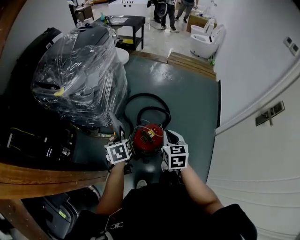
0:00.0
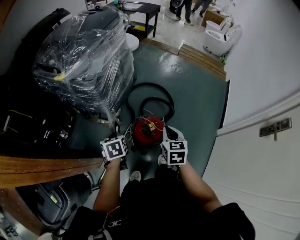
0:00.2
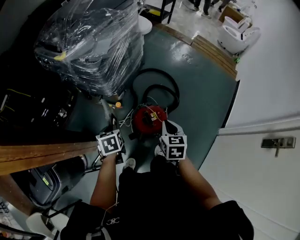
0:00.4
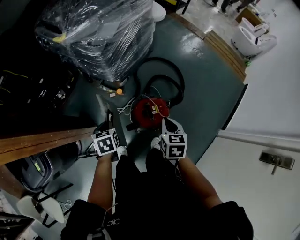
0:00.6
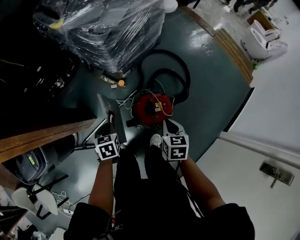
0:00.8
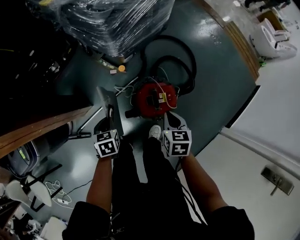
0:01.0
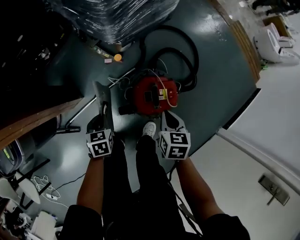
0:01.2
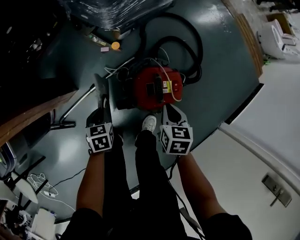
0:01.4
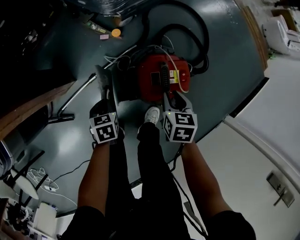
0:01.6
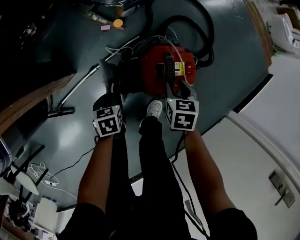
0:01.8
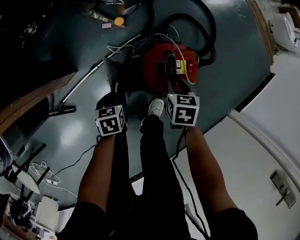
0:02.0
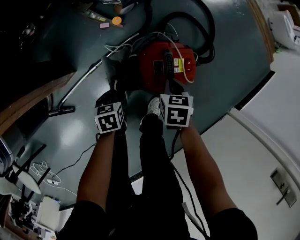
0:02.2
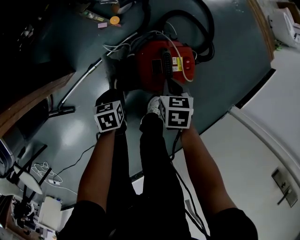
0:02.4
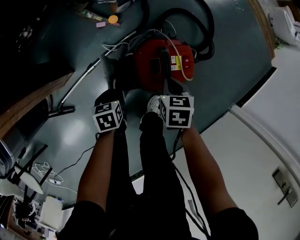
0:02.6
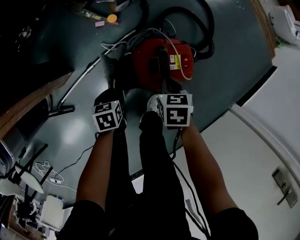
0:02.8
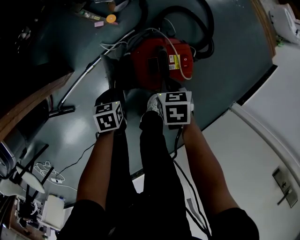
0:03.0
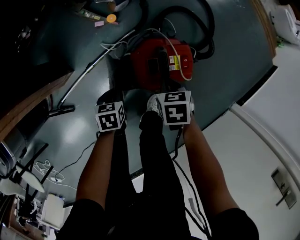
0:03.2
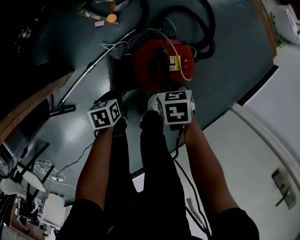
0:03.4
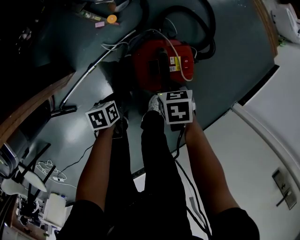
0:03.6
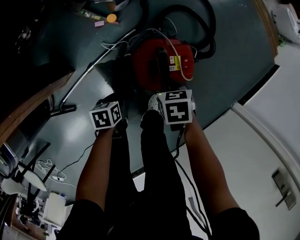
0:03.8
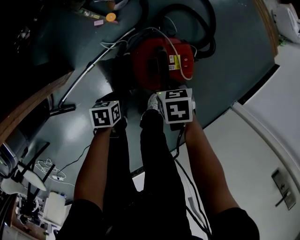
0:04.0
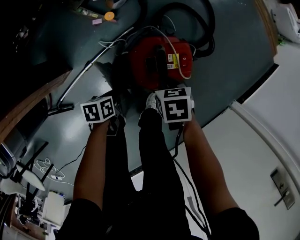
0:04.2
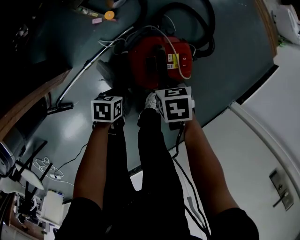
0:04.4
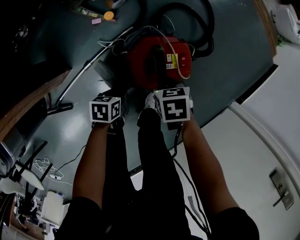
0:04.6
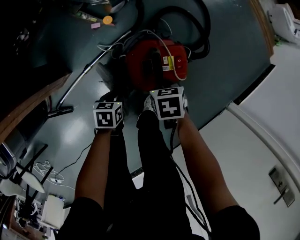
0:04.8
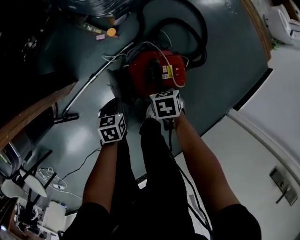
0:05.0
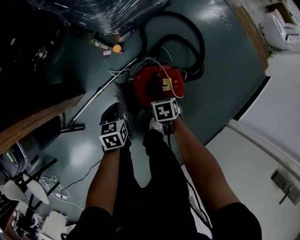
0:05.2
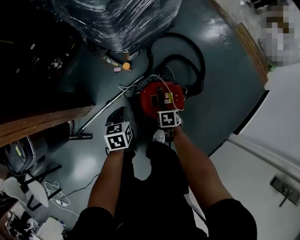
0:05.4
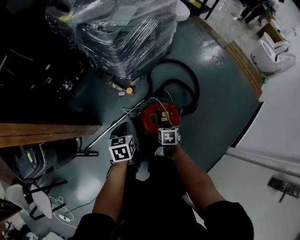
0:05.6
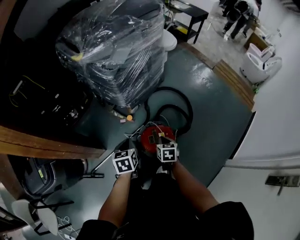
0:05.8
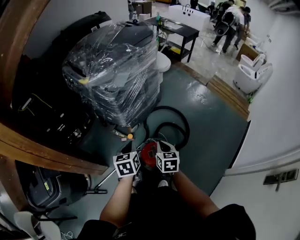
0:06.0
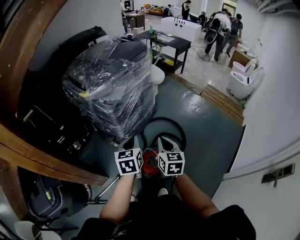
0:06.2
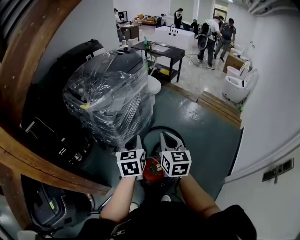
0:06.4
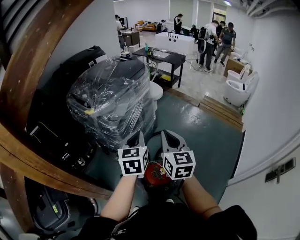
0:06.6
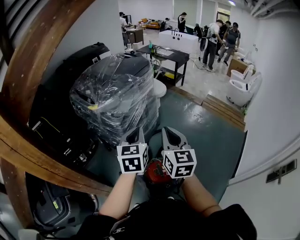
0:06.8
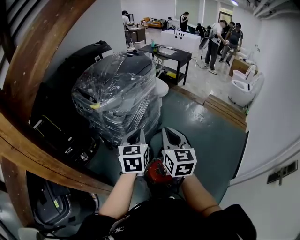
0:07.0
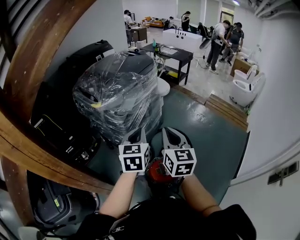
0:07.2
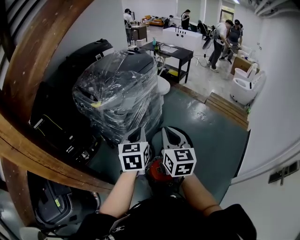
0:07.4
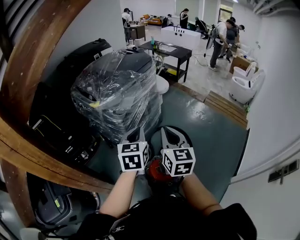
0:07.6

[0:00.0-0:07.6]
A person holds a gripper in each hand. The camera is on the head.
0:00.0 to 0:01.6: The two grippers go about 40 cm downward. The right gripper turns by approximately 40 degrees, and opens up. The left gripper changes its angle by roughly 30 degrees.
0:01.6 to 0:03.0: The right gripper closes its fingers. The left gripper shifts by roughly 5 cm.
0:03.0 to 0:04.6: The left gripper travels to the right by some 5 cm, and rotates approximately 20 degrees.
0:04.6 to 0:06.0: The grippers both shift upward by roughly 50 cm. The right gripper tips its fingers upward by roughly 40 degrees, while the left gripper turns by roughly 40 degrees.
0:06.0 to 0:07.6: The two grippers go approximately 25 cm upward. The right gripper swivels roughly 30 degrees, while the left gripper rotates about 20 degrees.

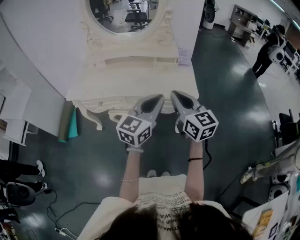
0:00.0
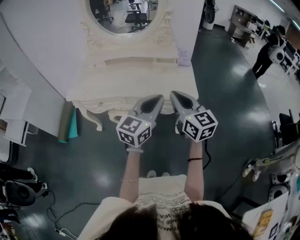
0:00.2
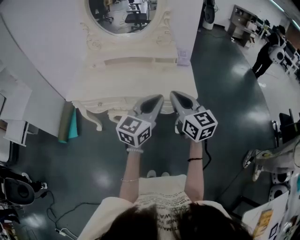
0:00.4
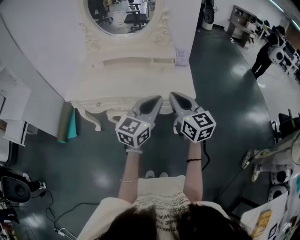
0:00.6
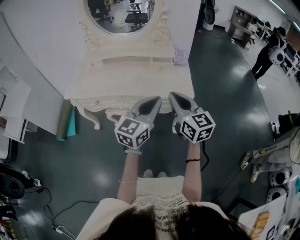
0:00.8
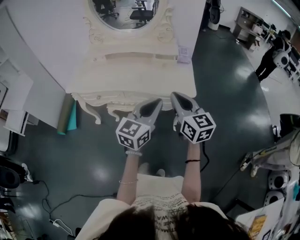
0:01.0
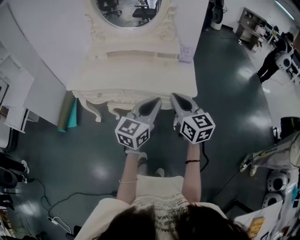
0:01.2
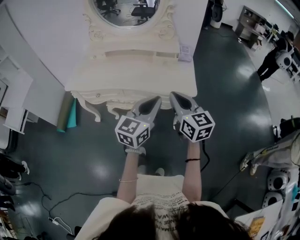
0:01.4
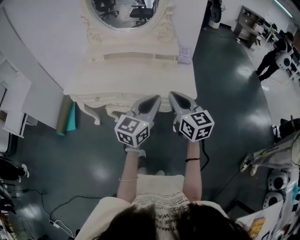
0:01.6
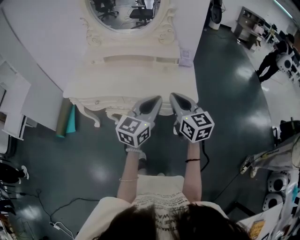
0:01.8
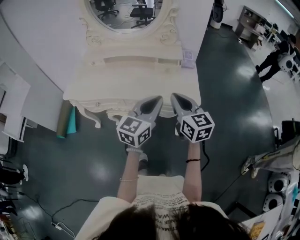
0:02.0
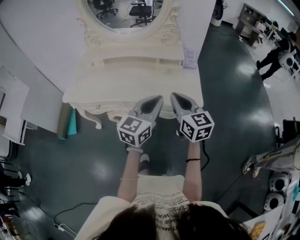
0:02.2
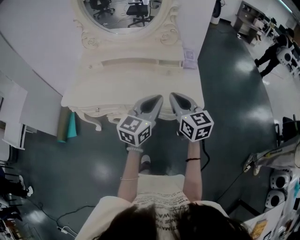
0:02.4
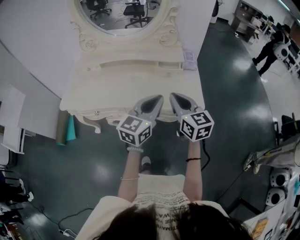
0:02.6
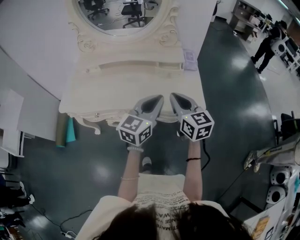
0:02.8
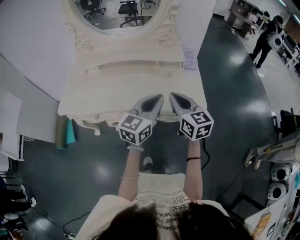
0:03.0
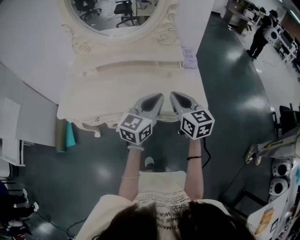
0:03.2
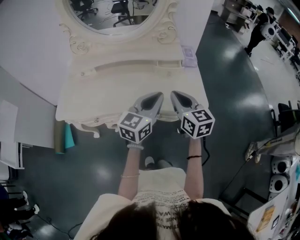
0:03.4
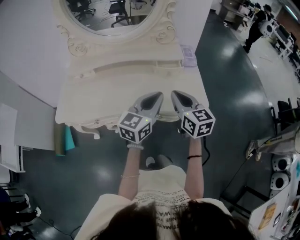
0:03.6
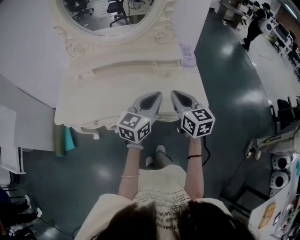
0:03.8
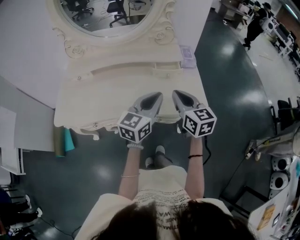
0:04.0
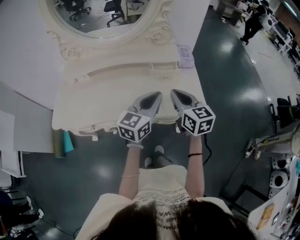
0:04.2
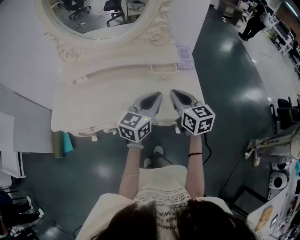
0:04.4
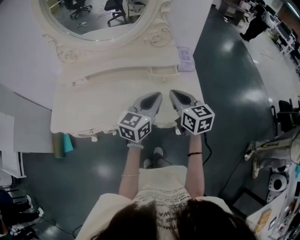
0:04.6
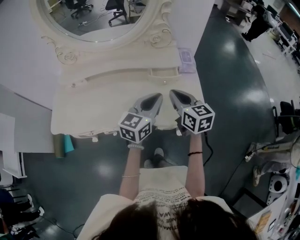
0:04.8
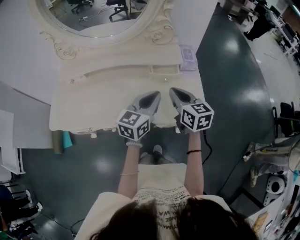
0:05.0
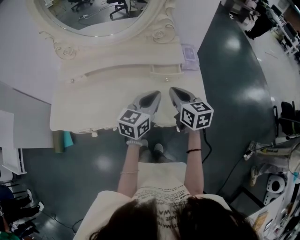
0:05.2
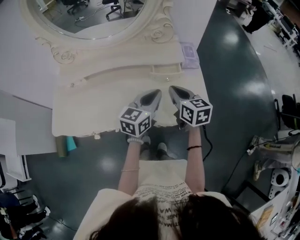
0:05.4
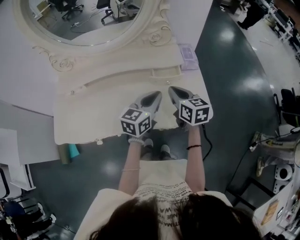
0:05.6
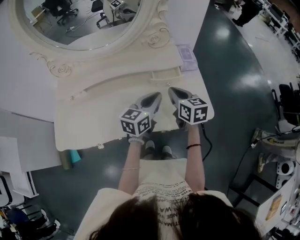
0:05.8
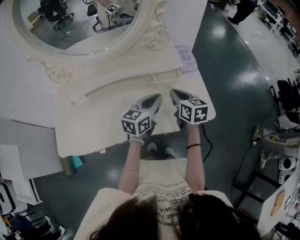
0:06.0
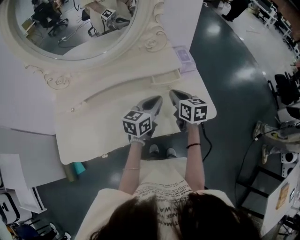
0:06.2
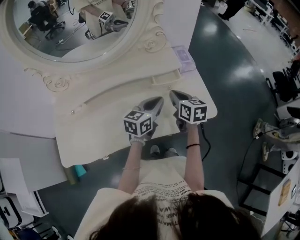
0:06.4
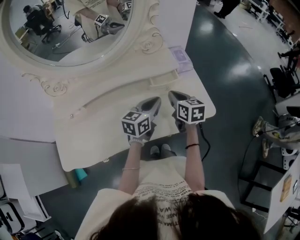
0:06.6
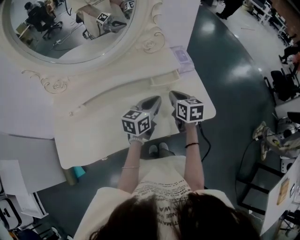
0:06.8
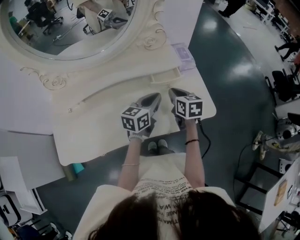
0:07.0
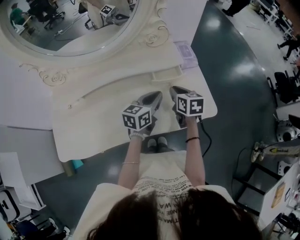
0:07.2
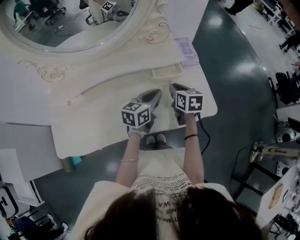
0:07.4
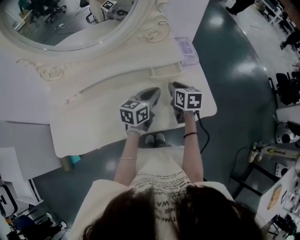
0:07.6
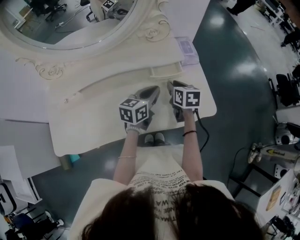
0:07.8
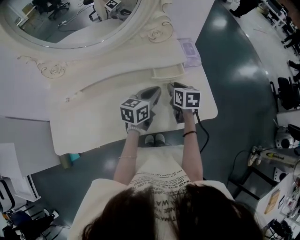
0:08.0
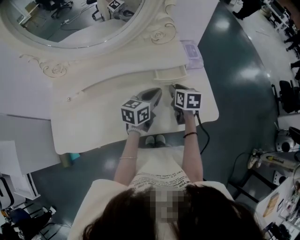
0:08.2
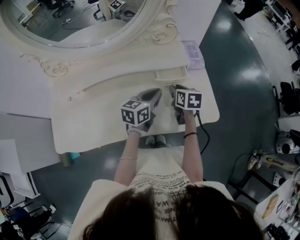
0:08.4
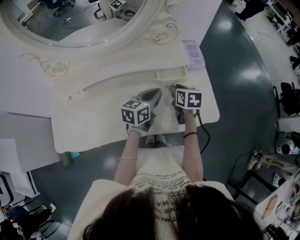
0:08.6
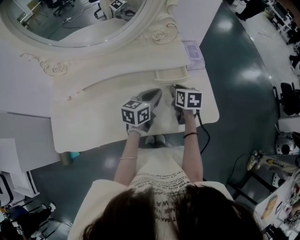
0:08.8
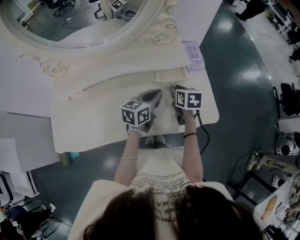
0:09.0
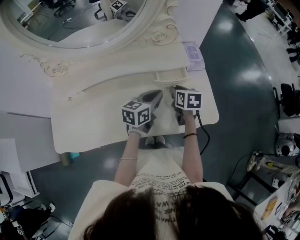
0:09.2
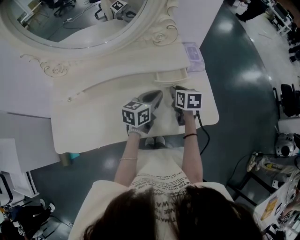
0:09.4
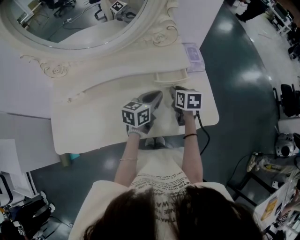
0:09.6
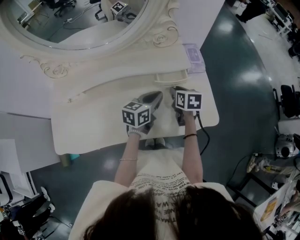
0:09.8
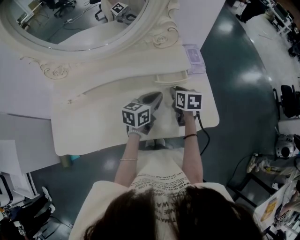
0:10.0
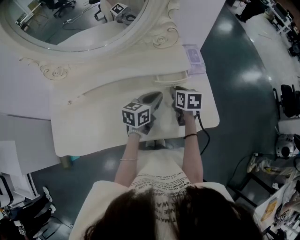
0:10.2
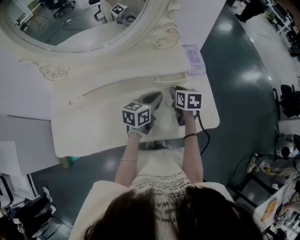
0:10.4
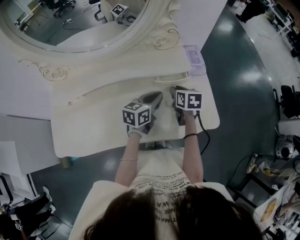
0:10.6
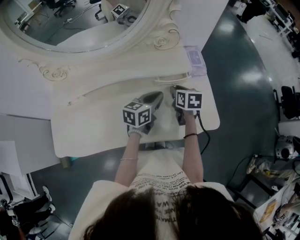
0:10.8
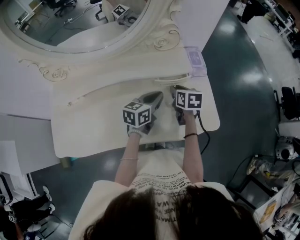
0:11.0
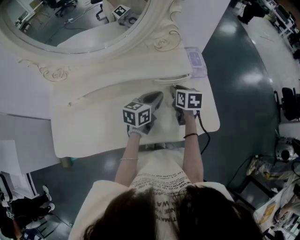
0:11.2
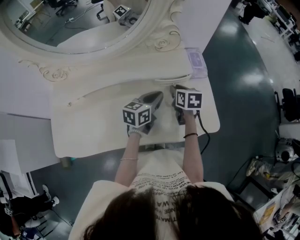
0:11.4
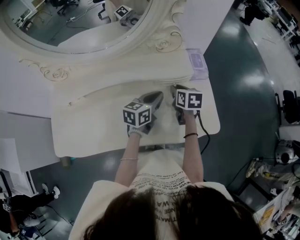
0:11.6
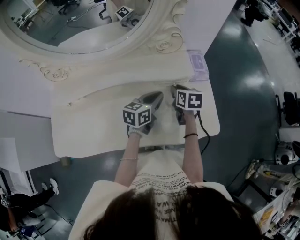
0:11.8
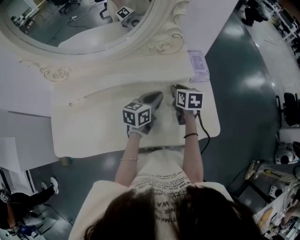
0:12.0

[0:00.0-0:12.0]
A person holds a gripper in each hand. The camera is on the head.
0:00.0 to 0:01.6: There are only small adjustments of the grippers.
0:01.6 to 0:03.0: The right gripper travels forward and to the left by approximately 15 cm; the left gripper shifts roughly 15 cm forward.
0:03.0 to 0:04.4: Both grippers travel together forward, some 10 cm.
0:04.4 to 0:06.0: Both grippers move forward and downward, about 10 cm.
0:06.0 to 0:07.6: The right gripper goes approximately 5 cm downward. Meanwhile the left gripper shifts by approximately 5 cm.
0:07.6 to 0:10.4: The grippers move only a little.
0:10.4 to 0:12.0: The grippers stay close to where they were, moving slightly.

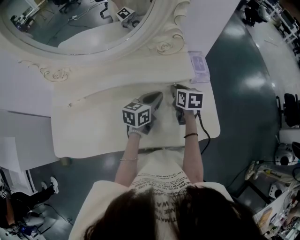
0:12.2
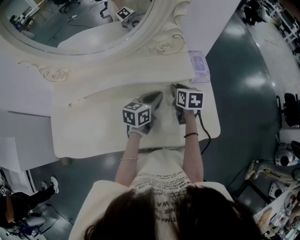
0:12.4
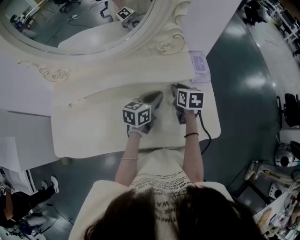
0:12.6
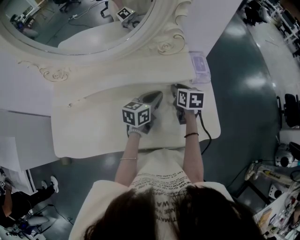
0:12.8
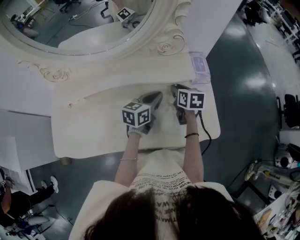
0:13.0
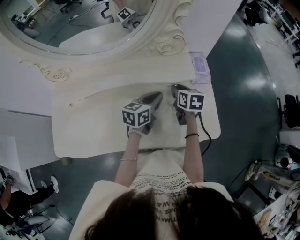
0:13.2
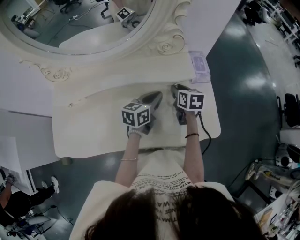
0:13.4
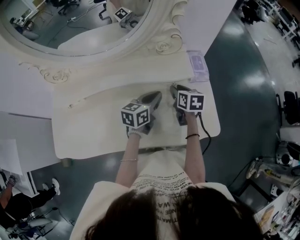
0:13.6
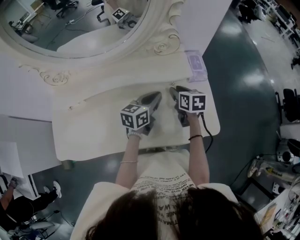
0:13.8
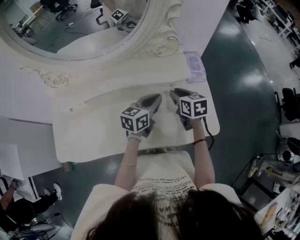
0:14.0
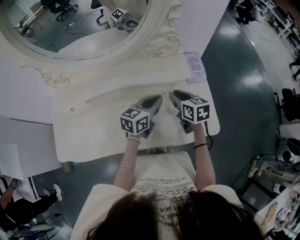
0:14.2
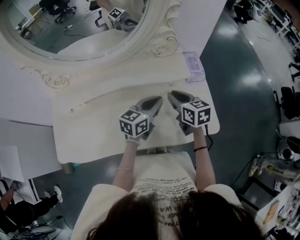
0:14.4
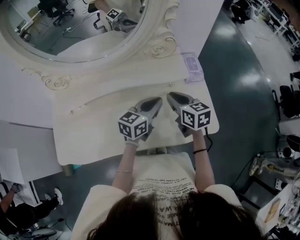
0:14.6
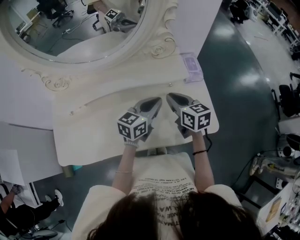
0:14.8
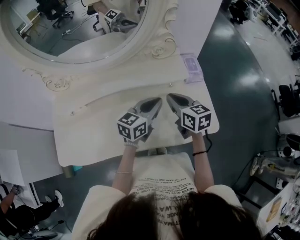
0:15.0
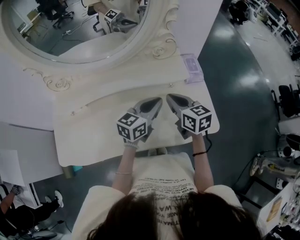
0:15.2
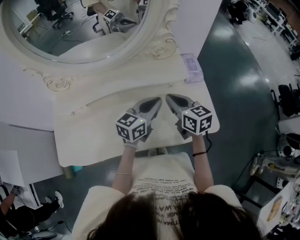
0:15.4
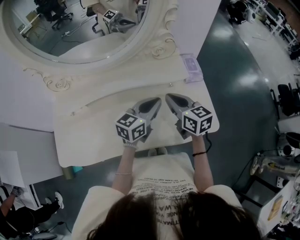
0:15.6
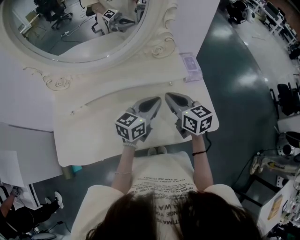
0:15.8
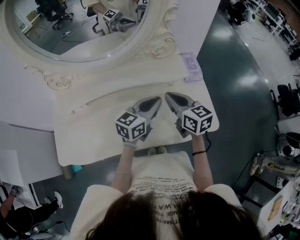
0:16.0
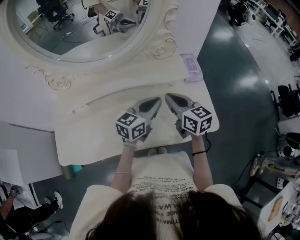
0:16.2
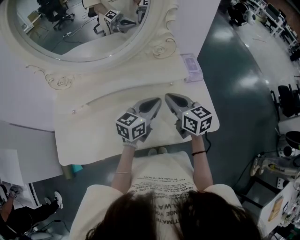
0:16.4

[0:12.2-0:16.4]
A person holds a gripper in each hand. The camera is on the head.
0:12.2 to 0:13.6: Both grippers stay about where they are.
0:13.6 to 0:15.0: The right gripper travels upward and backward by about 15 cm, rotates roughly 20 degrees, and closes up; the left gripper shifts approximately 5 cm upward.
0:15.0 to 0:16.4: The grippers move only a little.
